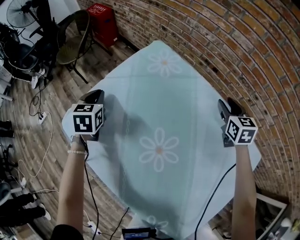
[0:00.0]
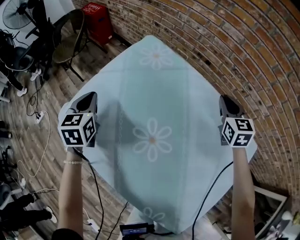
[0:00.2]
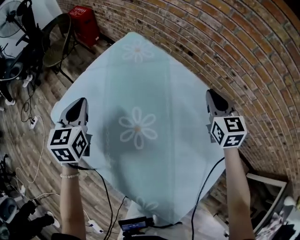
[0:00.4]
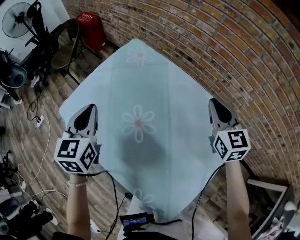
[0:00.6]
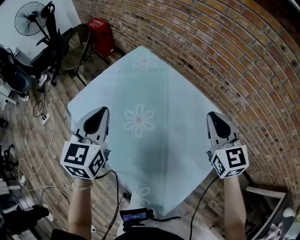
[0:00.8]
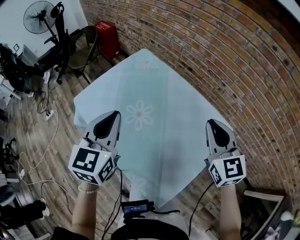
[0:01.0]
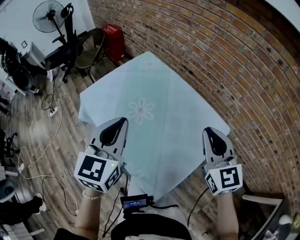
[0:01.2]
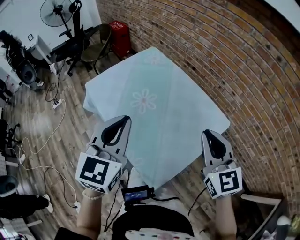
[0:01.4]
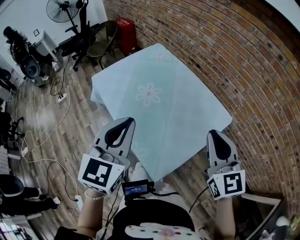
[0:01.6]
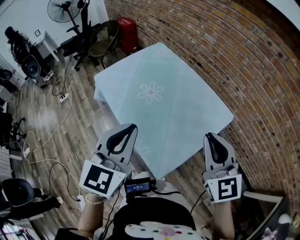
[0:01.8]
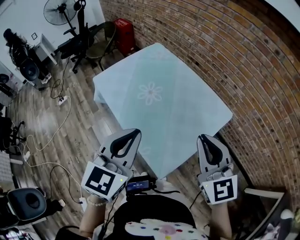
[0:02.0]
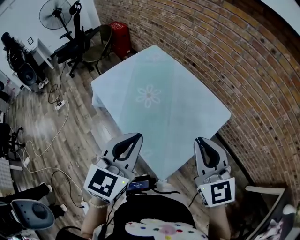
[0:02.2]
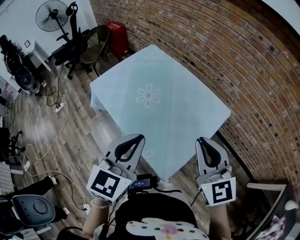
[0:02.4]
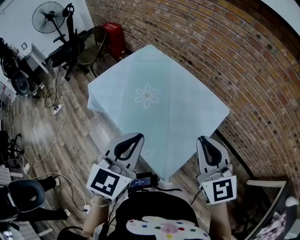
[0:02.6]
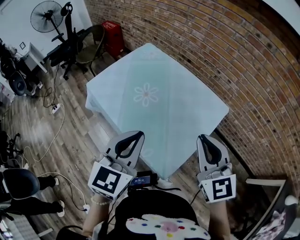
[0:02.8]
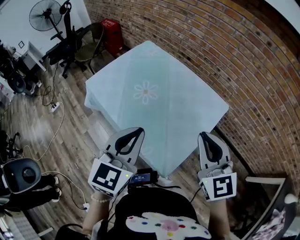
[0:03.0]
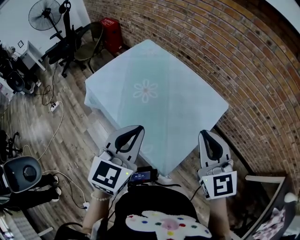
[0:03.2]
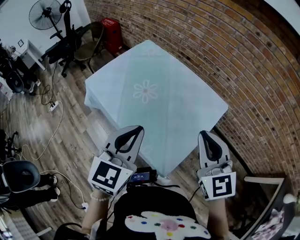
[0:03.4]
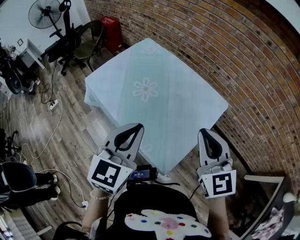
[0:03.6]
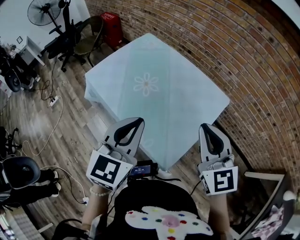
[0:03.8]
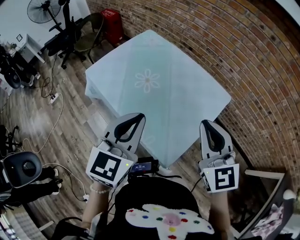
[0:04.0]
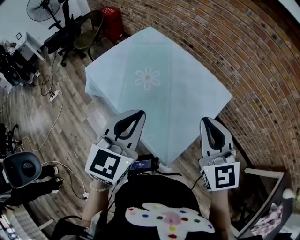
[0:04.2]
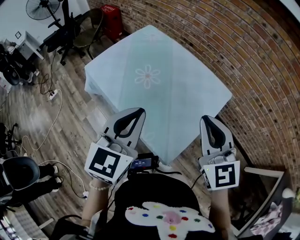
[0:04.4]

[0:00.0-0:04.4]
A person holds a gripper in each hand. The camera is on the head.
0:00.0 to 0:01.4: The pair of grippers is taken backward, about 40 cm. The grippers both shift upward by roughly 25 cm. The left gripper changes its angle by about 30 degrees. Meanwhile the right gripper changes its angle by about 30 degrees, and closes up.
0:01.4 to 0:03.0: Both grippers move backward, roughly 10 cm.
0:03.0 to 0:04.4: The grippers move only a little.

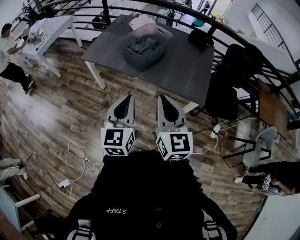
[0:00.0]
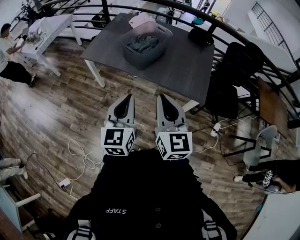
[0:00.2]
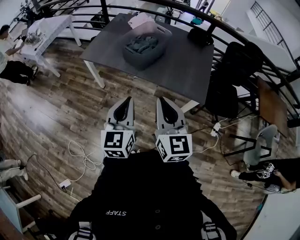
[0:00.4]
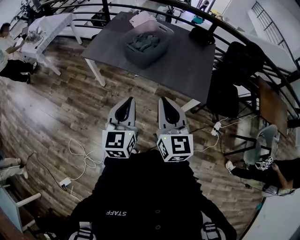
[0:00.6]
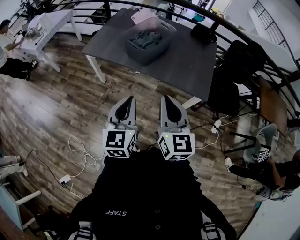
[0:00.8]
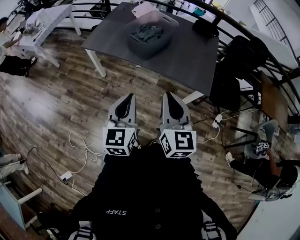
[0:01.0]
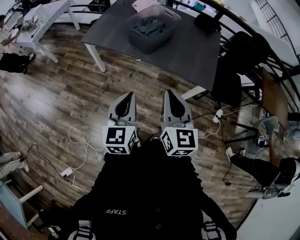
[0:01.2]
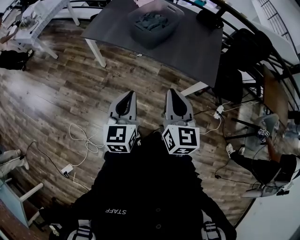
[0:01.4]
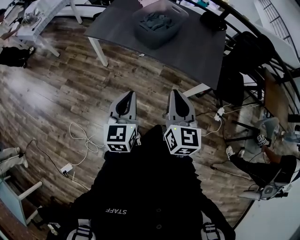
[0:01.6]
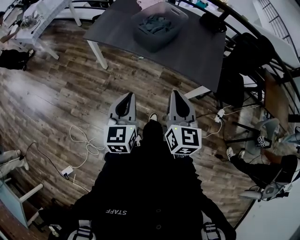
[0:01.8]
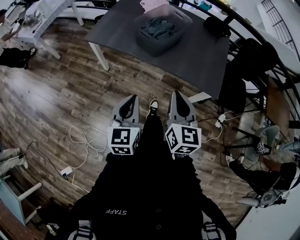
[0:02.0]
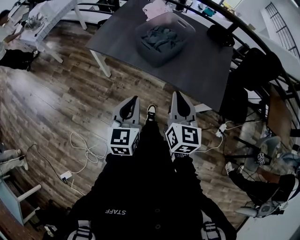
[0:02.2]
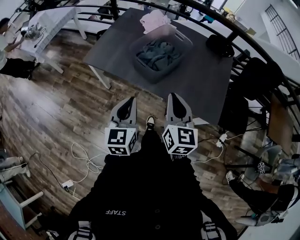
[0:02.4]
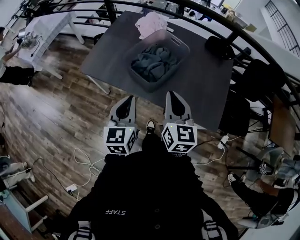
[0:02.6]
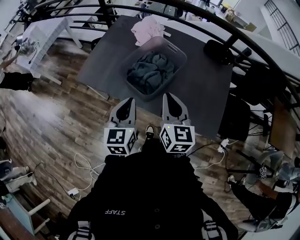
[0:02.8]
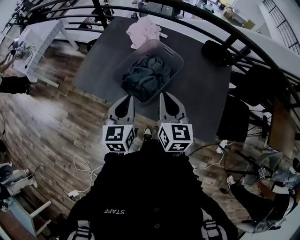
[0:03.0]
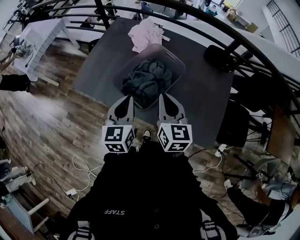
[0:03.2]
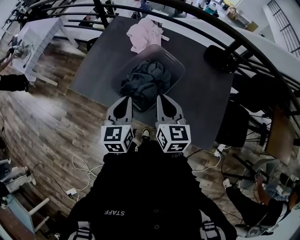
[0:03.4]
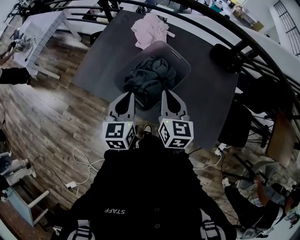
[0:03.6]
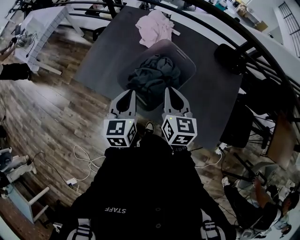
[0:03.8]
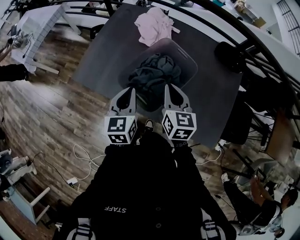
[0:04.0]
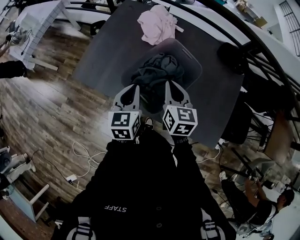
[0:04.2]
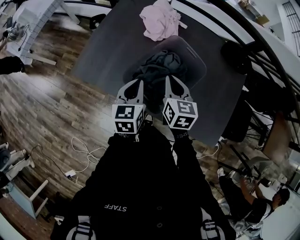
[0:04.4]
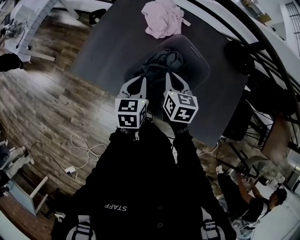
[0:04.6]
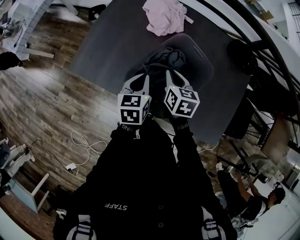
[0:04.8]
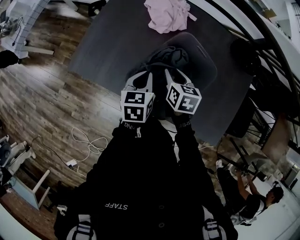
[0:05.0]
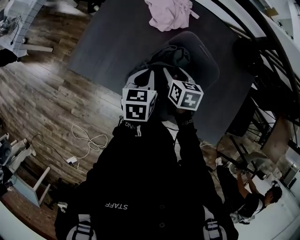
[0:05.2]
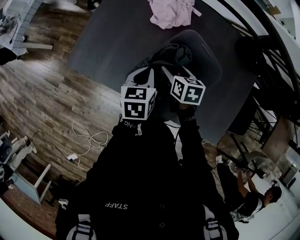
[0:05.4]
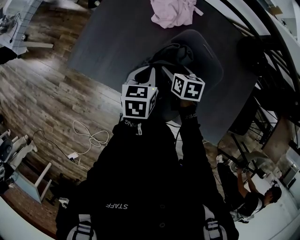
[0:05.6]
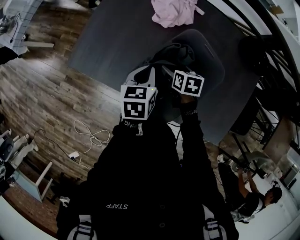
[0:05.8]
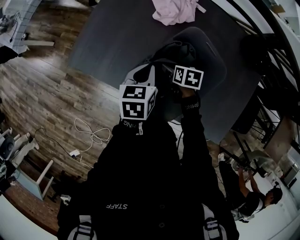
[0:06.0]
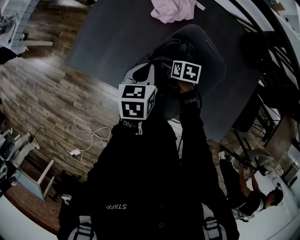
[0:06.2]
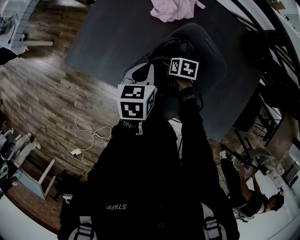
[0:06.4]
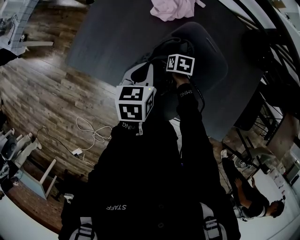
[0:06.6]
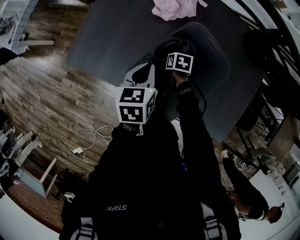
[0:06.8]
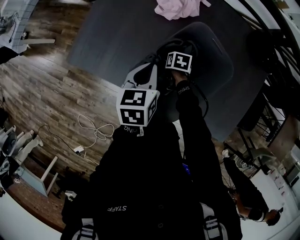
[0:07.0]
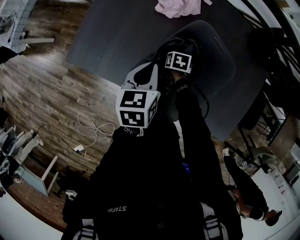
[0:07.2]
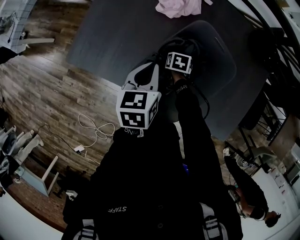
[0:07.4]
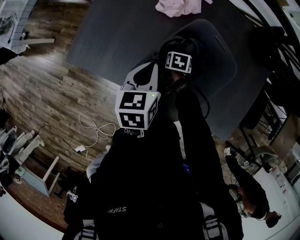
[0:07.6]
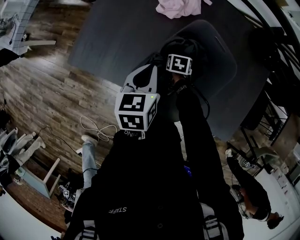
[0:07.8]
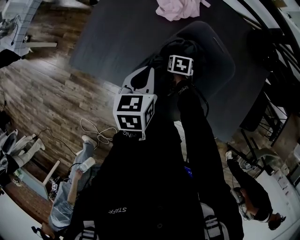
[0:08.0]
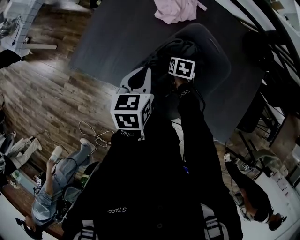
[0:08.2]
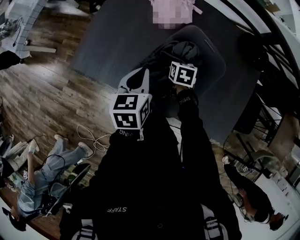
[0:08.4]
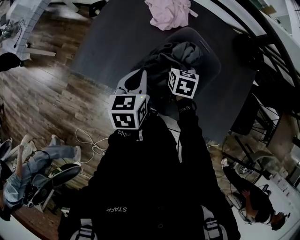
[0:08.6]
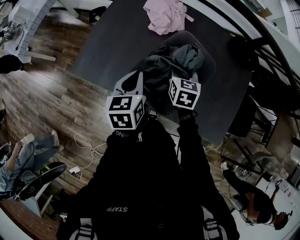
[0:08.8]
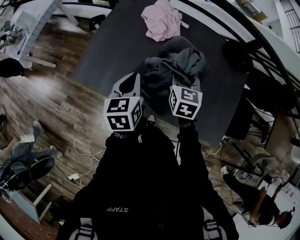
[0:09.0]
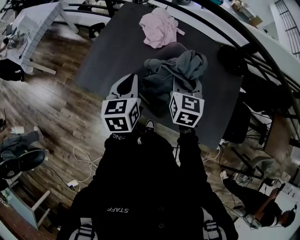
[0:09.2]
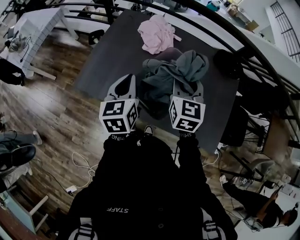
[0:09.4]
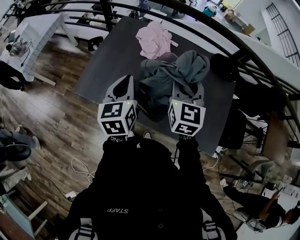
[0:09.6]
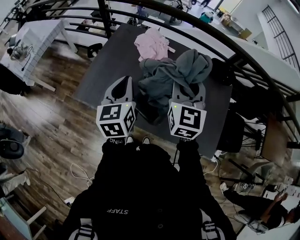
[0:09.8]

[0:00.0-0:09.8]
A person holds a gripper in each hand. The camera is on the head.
0:00.0 to 0:01.4: The left gripper goes some 10 cm downward and to the left. The right gripper travels downward by some 5 cm.
0:01.4 to 0:02.8: Both grippers move forward, some 35 cm.
0:02.8 to 0:04.2: The left gripper is displaced forward by some 15 cm, while the right gripper goes roughly 20 cm forward and downward.
0:04.2 to 0:05.6: The grippers both shift downward and forward by some 20 cm. The right gripper turns by approximately 30 degrees, and opens up, while the left gripper turns by about 20 degrees.
0:05.6 to 0:07.0: The right gripper is displaced downward by approximately 15 cm.
0:07.0 to 0:08.4: The left gripper shifts by about 5 cm. The right gripper moves upward, about 10 cm, and closes up.
0:08.4 to 0:09.8: The right gripper shifts approximately 40 cm upward, and tilts its fingers approximately 50 degrees upward, while the left gripper heads upward, covering about 20 cm, and turns by about 20 degrees.

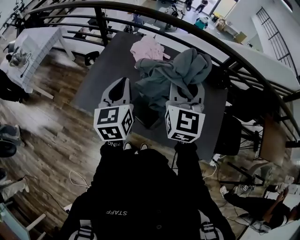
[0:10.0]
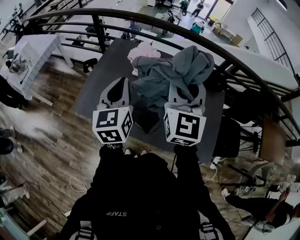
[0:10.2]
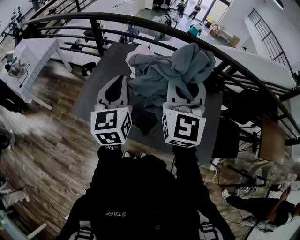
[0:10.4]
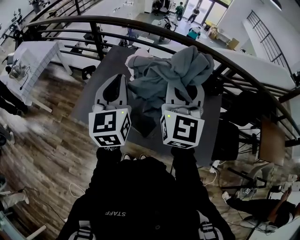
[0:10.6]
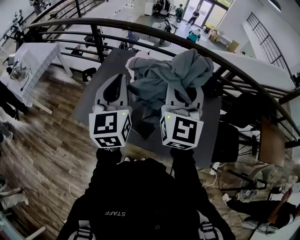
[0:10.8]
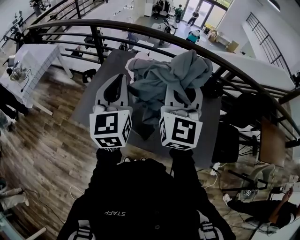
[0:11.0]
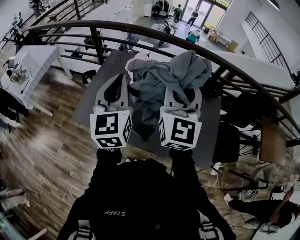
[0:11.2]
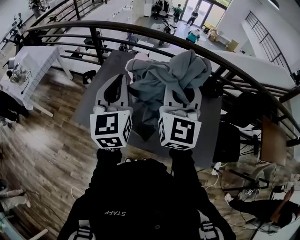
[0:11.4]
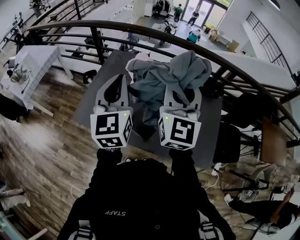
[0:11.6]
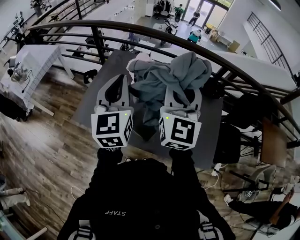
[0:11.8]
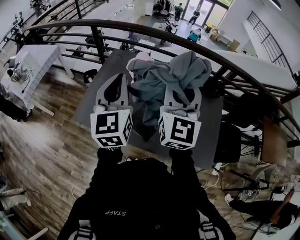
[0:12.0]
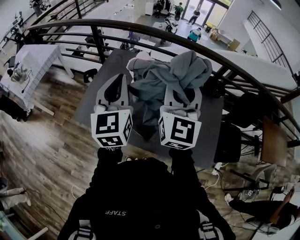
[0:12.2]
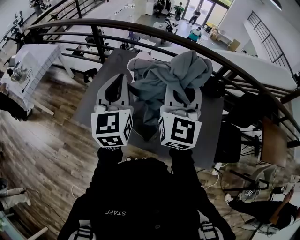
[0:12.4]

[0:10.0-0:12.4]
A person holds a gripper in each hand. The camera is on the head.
0:10.0 to 0:11.2: Both grippers move upward, approximately 10 cm.
0:11.2 to 0:12.4: The grippers move only a little.

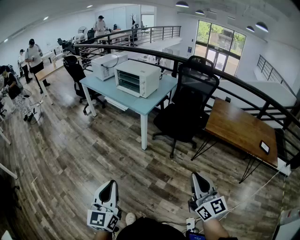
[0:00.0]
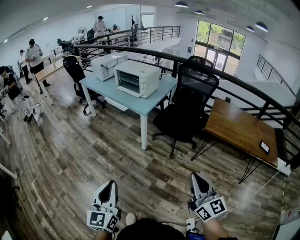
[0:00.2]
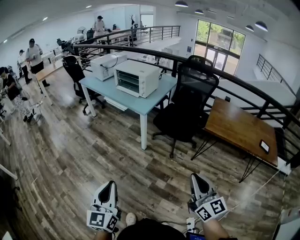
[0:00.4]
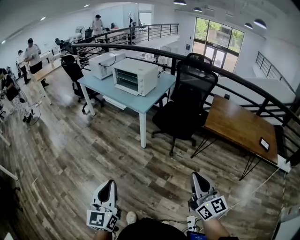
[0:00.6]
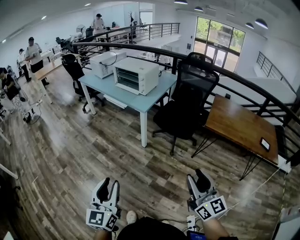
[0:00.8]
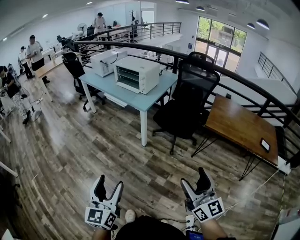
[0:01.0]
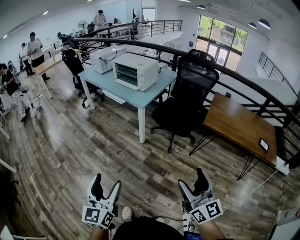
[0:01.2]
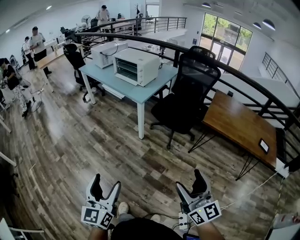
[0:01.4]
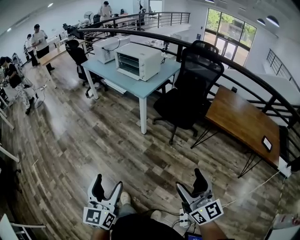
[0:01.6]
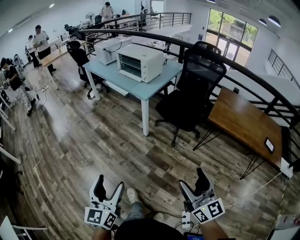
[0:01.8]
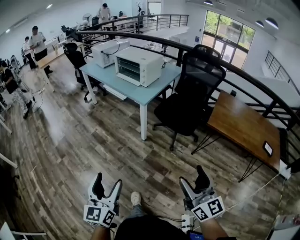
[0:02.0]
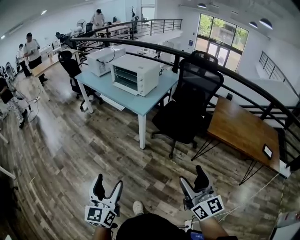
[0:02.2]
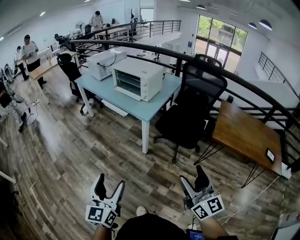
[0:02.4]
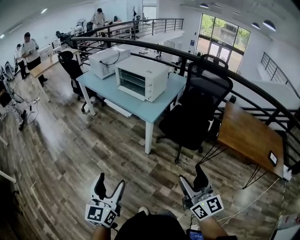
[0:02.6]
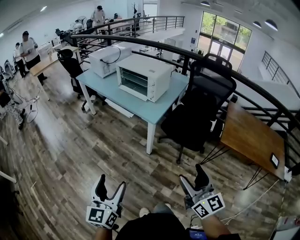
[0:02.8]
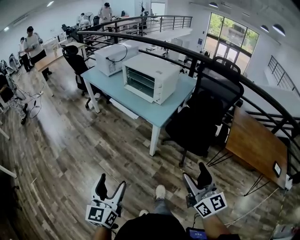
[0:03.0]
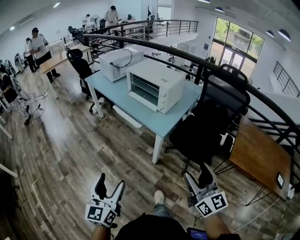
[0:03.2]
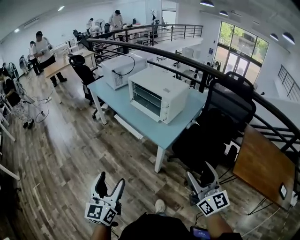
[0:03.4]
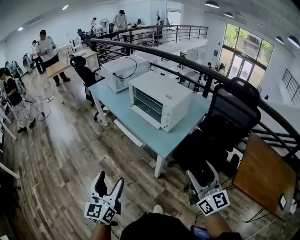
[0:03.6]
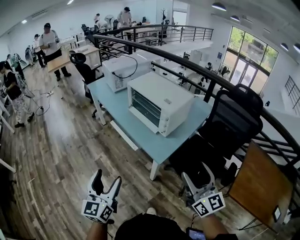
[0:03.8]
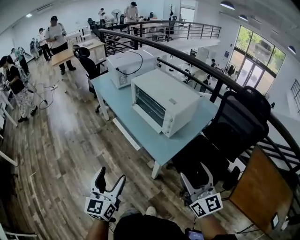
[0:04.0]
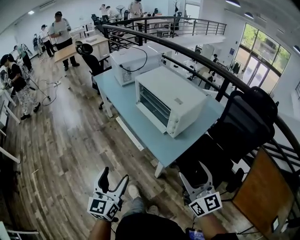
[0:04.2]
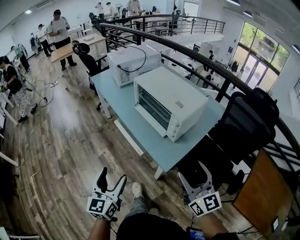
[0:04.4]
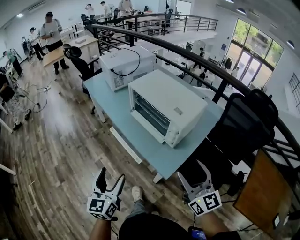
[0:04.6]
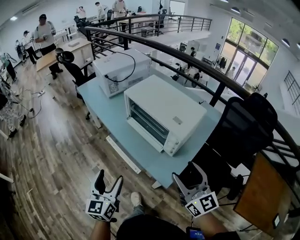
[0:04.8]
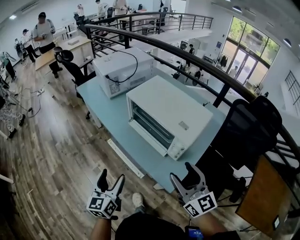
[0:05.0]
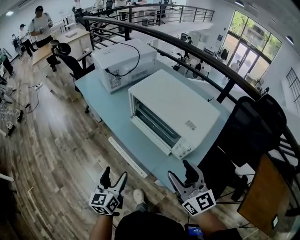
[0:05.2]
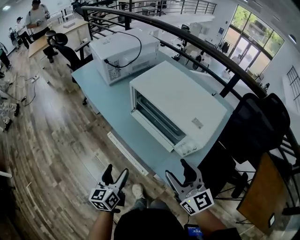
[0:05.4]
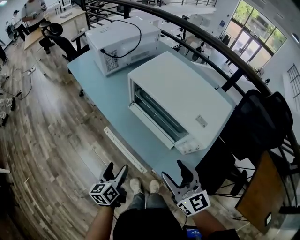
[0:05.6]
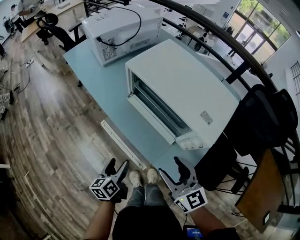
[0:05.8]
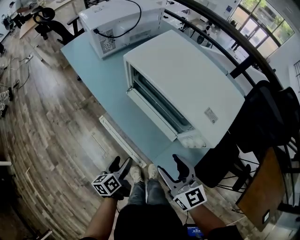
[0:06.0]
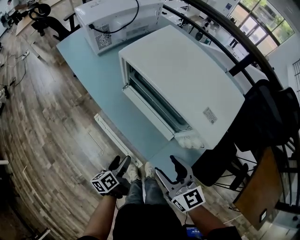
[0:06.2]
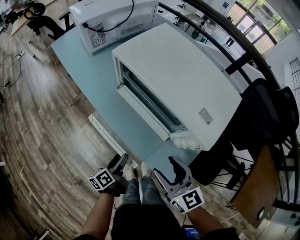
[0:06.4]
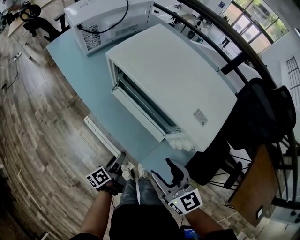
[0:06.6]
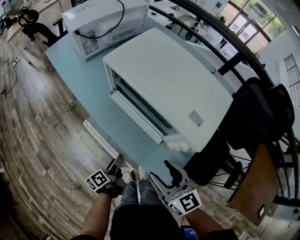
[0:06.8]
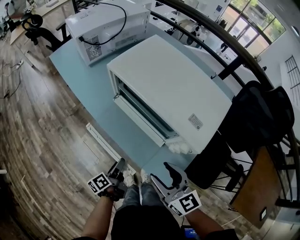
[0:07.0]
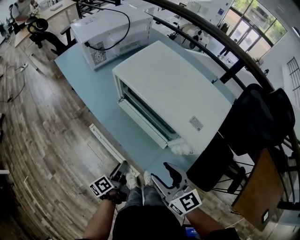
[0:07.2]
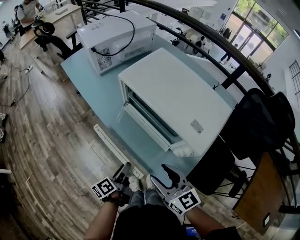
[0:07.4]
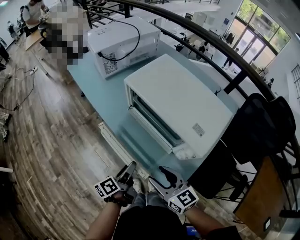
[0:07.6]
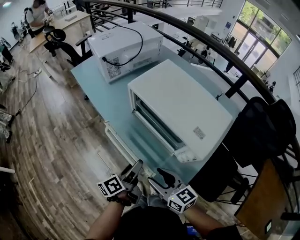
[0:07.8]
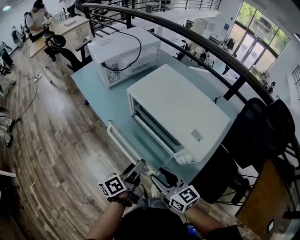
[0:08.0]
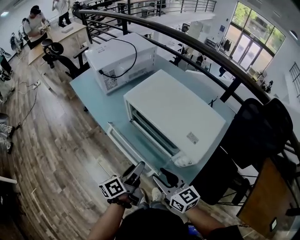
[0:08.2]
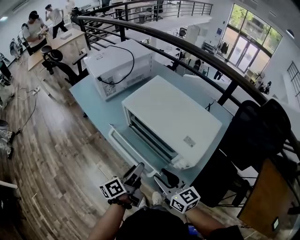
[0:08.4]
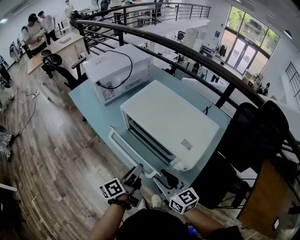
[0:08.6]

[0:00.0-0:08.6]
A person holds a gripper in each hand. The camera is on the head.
0:00.0 to 0:01.4: The right gripper opens up. Meanwhile the left gripper shifts by roughly 5 cm, and opens its fingers.
0:01.4 to 0:02.8: Both grippers travel together forward, some 25 cm.
0:02.8 to 0:04.4: Both grippers travel together forward, about 35 cm.
0:04.4 to 0:05.8: The left gripper travels downward and forward by about 30 cm, and rotates roughly 40 degrees, while the right gripper goes about 25 cm forward, downward and to the left.
0:05.8 to 0:07.2: The left gripper turns by some 30 degrees.
0:07.2 to 0:08.6: The left gripper travels upward and forward by some 15 cm.
